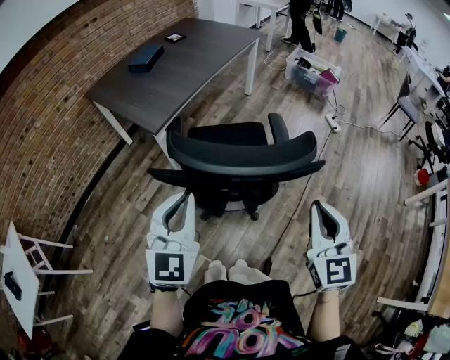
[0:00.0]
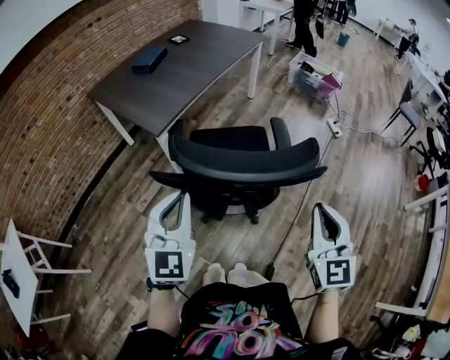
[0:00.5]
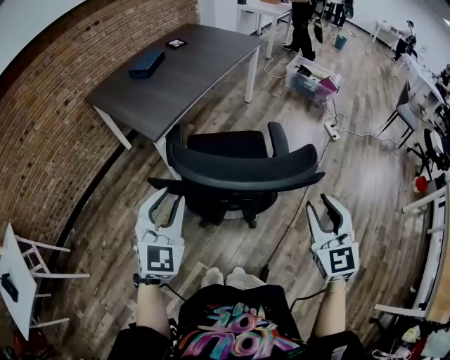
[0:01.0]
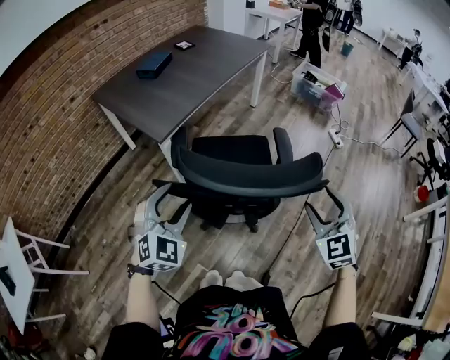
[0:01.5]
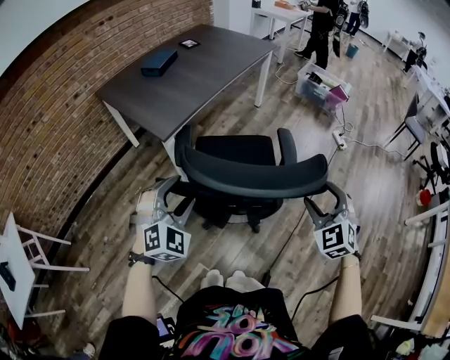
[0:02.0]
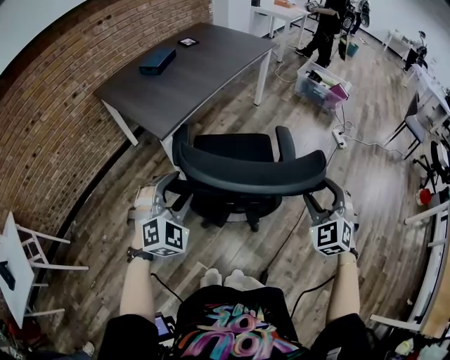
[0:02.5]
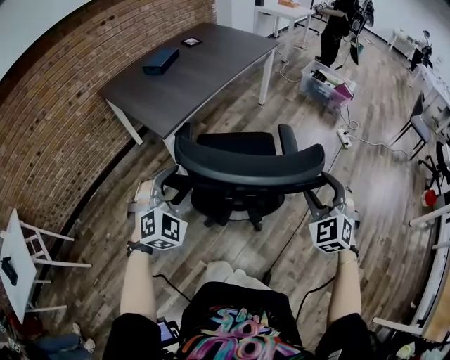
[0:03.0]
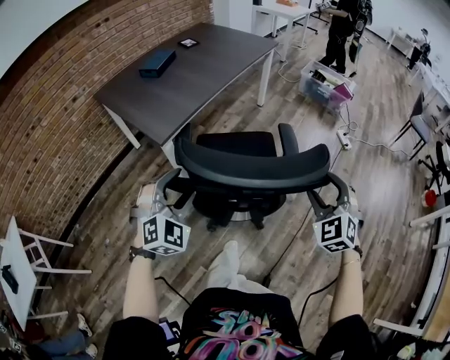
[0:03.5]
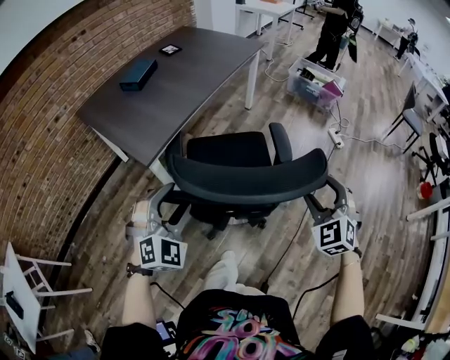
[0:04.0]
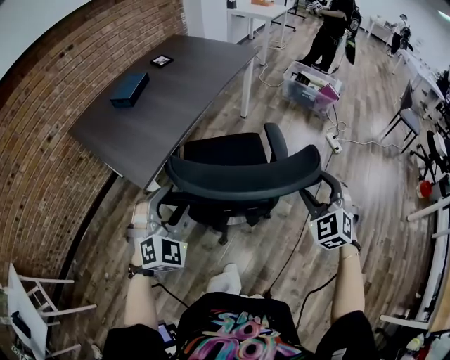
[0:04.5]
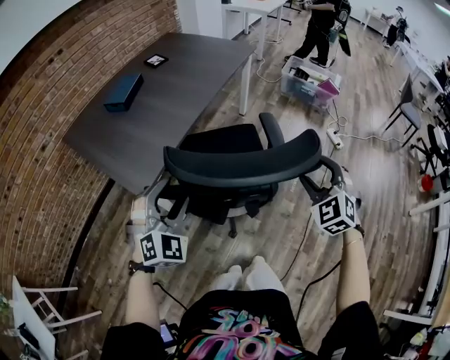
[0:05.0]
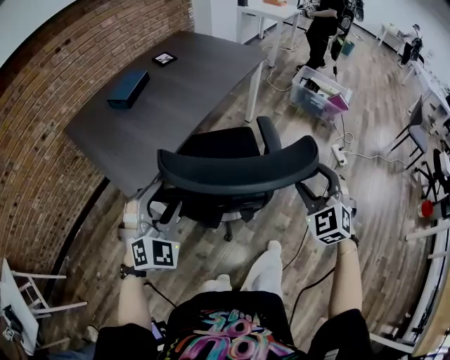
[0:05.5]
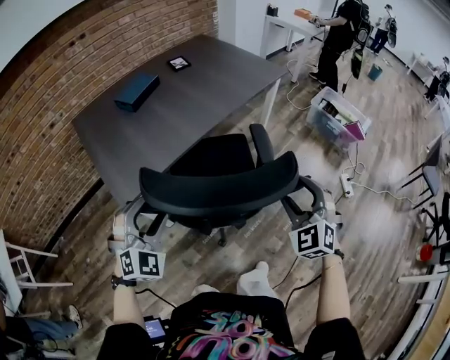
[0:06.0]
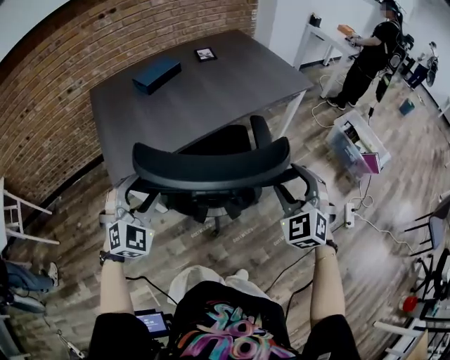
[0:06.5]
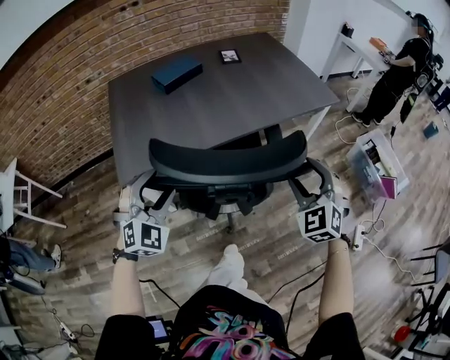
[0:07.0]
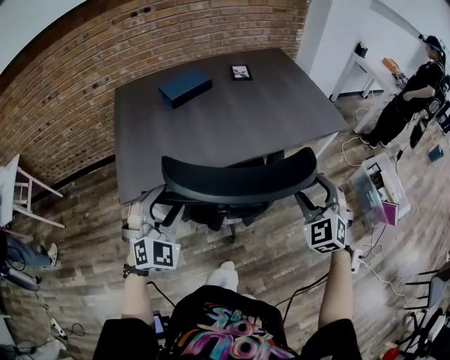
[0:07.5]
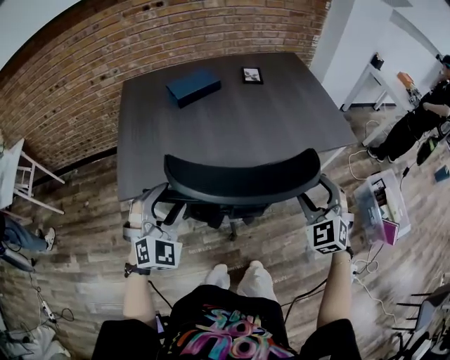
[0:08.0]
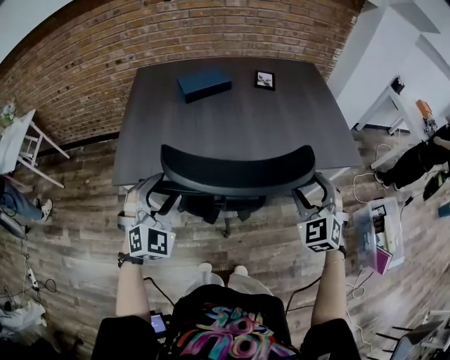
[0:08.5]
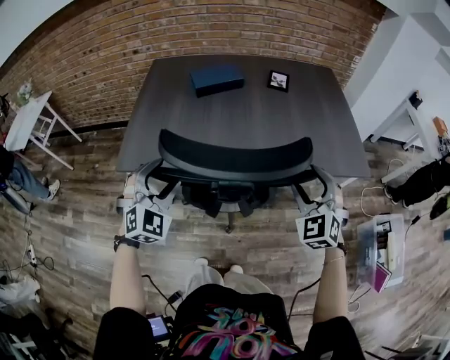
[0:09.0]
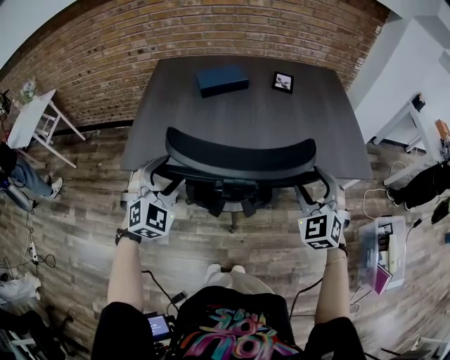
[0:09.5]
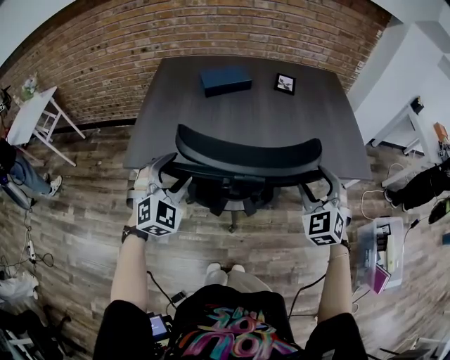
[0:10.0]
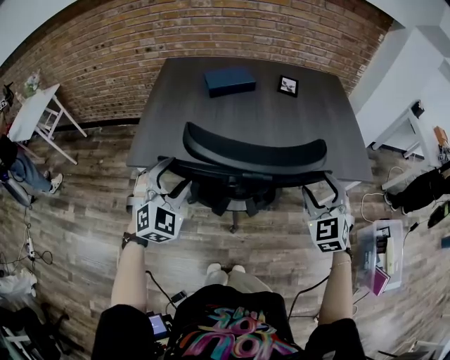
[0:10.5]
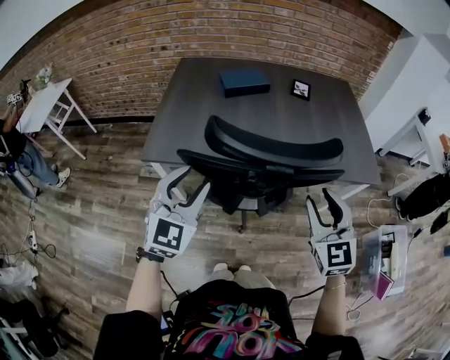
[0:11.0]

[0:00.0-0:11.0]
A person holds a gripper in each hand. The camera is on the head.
0:00.0 to 0:02.0: The right gripper heads forward and downward, covering roughly 15 cm, rotates some 40 degrees, and opens. Meanwhile the left gripper travels downward and forward by approximately 10 cm, rolls clockwise, seen from behind, by some 40 degrees, and opens up.
0:02.0 to 0:03.5: The right gripper travels forward by some 5 cm.
0:03.5 to 0:05.5: The two grippers go approximately 25 cm forward.
0:05.5 to 0:07.5: The left gripper shifts by roughly 20 cm, and rotates roughly 30 degrees. The right gripper moves approximately 35 cm, and turns by about 30 degrees.
0:07.5 to 0:09.0: The right gripper shifts some 15 cm forward; the left gripper shifts roughly 5 cm forward.
0:09.0 to 0:11.0: The left gripper shifts about 10 cm backward and upward, and swivels approximately 30 degrees. Meanwhile the right gripper travels backward, to the left and upward by approximately 10 cm, turns by about 30 degrees, and closes up.

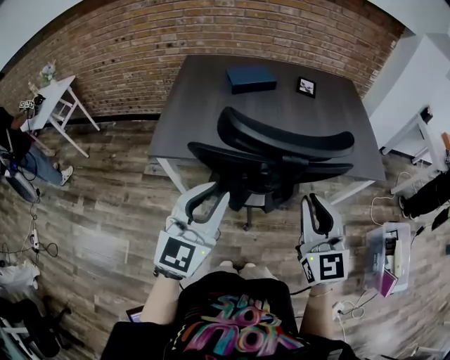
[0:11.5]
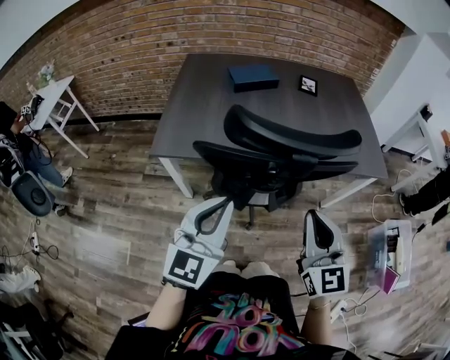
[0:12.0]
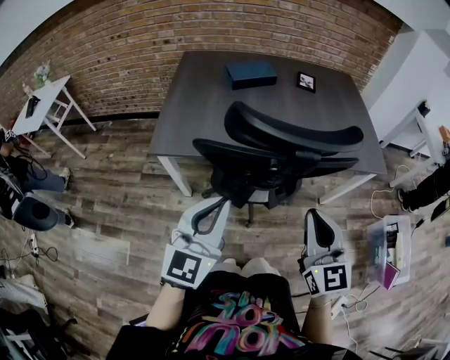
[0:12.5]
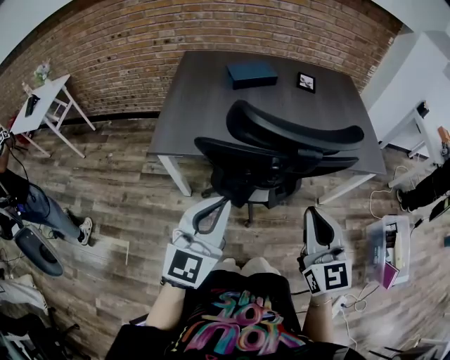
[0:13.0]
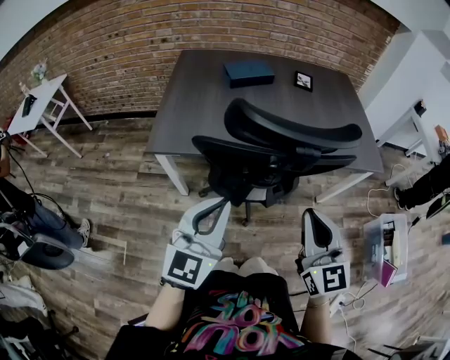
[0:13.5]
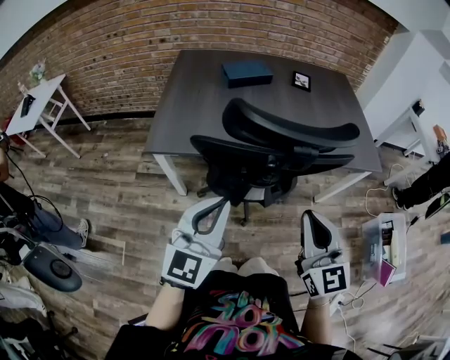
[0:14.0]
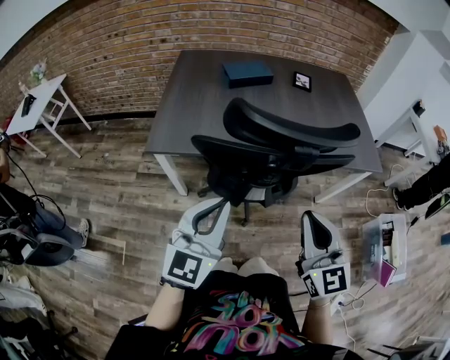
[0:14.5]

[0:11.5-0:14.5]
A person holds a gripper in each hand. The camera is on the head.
0:11.5 to 0:13.0: The grippers stay close to where they were, moving slightly.
0:13.0 to 0:14.5: The grippers move only a little.

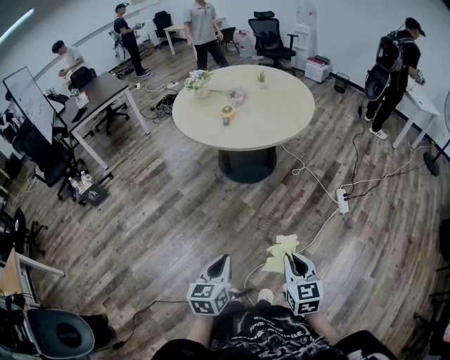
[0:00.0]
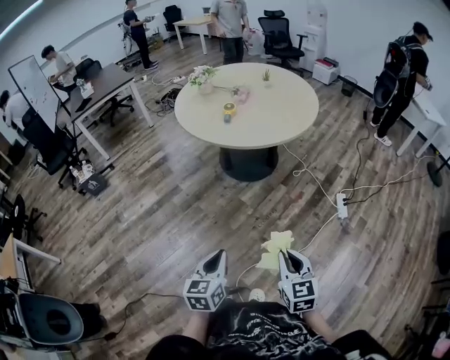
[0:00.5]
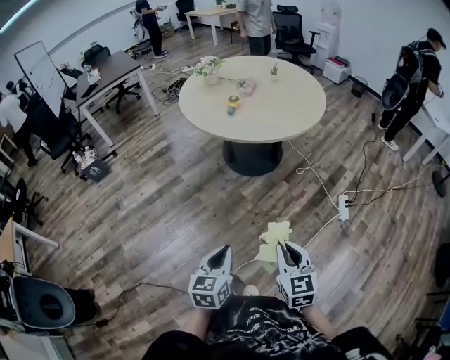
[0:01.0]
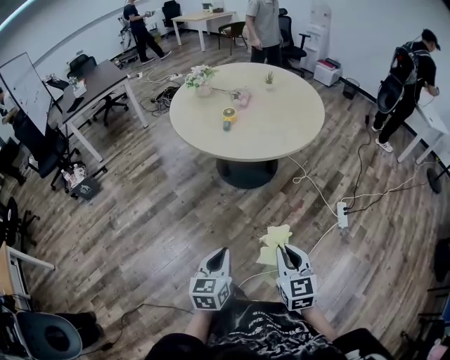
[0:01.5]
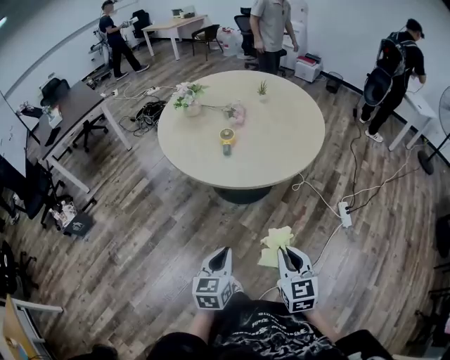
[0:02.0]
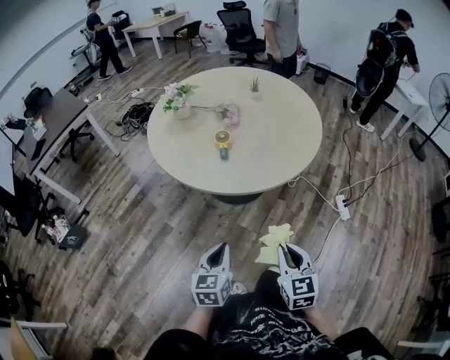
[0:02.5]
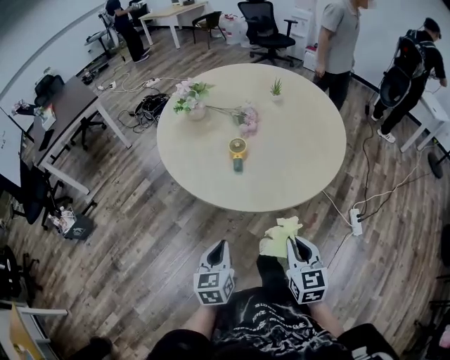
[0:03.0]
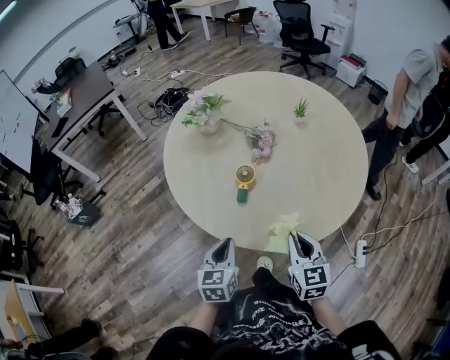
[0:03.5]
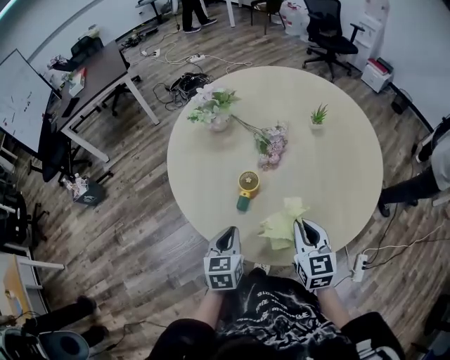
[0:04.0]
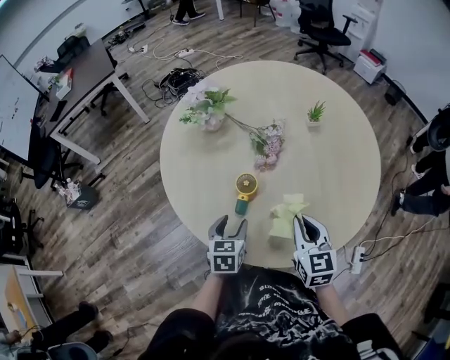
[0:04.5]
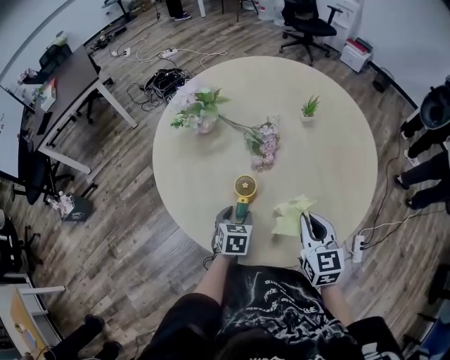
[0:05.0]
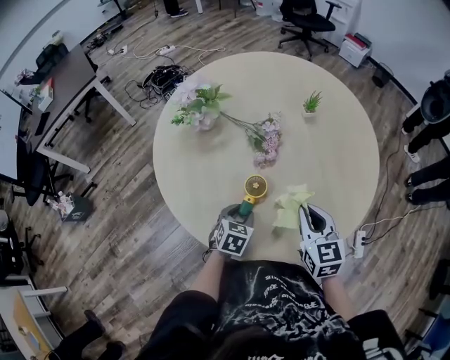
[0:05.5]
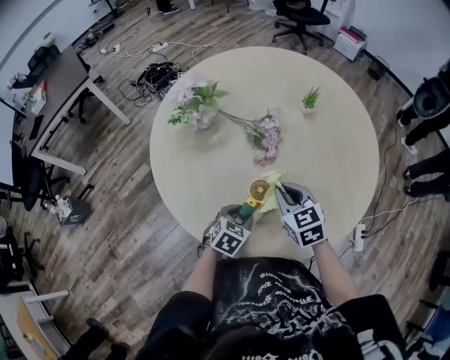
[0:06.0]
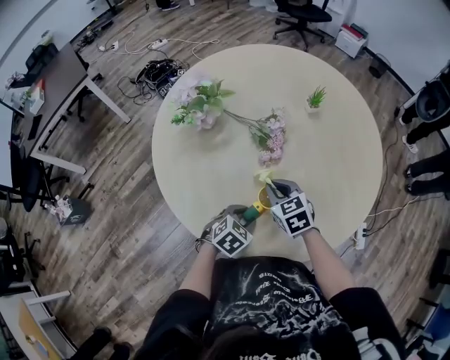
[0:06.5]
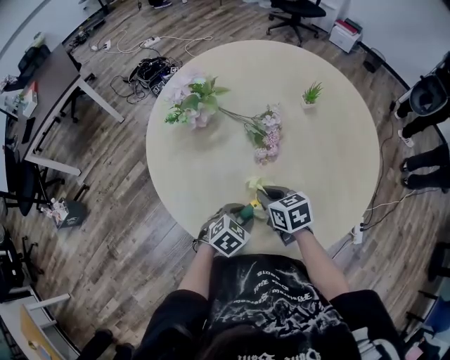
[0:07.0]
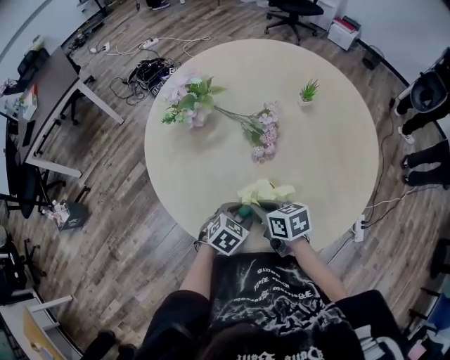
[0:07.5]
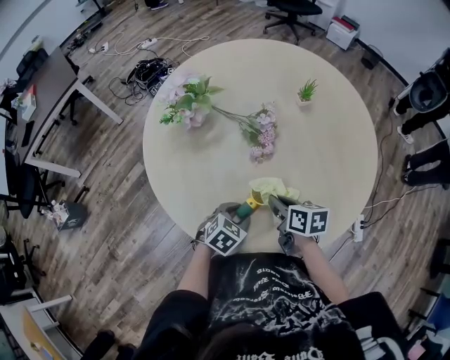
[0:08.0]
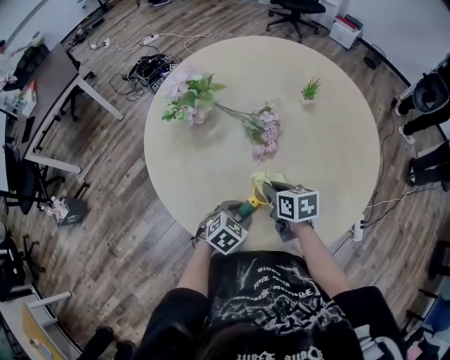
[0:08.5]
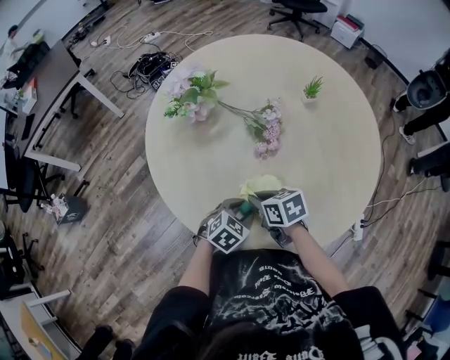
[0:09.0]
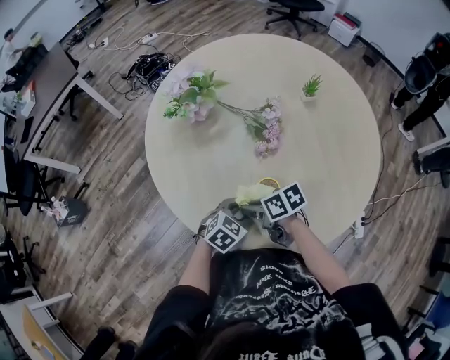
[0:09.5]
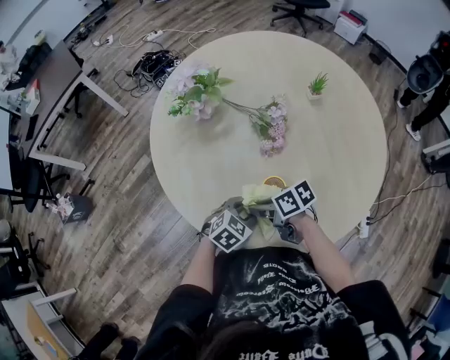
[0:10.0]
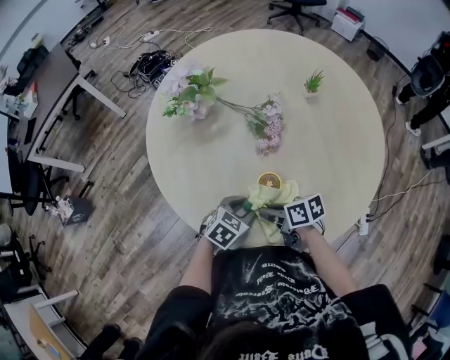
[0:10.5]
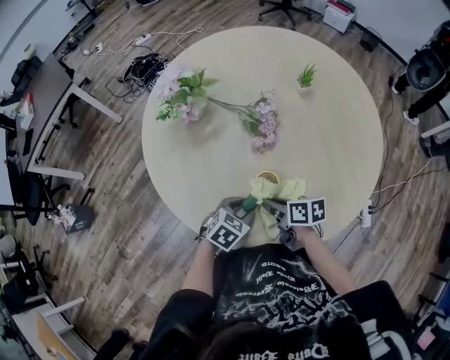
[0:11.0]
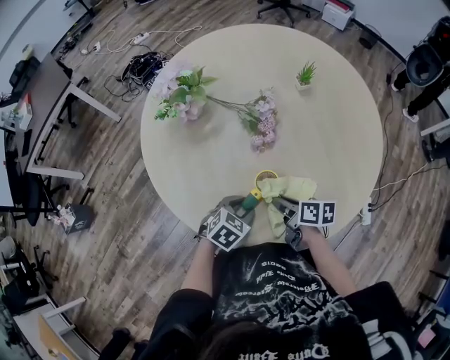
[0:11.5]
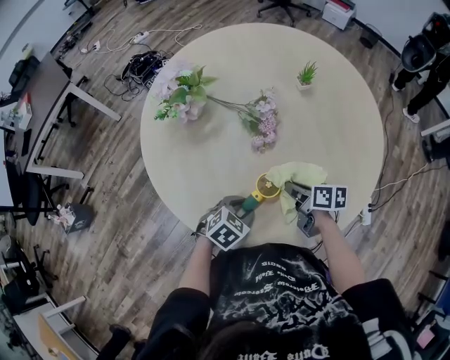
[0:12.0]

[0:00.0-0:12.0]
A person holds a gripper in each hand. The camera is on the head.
0:00.0 to 0:02.0: The grippers both shift forward by approximately 30 cm.
0:02.0 to 0:04.0: The pair of grippers is taken some 50 cm. The left gripper turns by roughly 20 degrees.
0:04.0 to 0:06.0: The left gripper is displaced downward and forward by roughly 15 cm, turns by about 50 degrees, and opens. Meanwhile the right gripper is displaced forward and to the left by about 15 cm.
0:06.0 to 0:08.0: The right gripper moves downward, some 5 cm, and rotates around the line of its fingers by approximately 40 degrees, clockwise from behind.
0:08.0 to 0:10.0: The right gripper changes place by roughly 10 cm, and rotates some 40 degrees.
0:10.0 to 0:12.0: The right gripper moves approximately 15 cm, and turns by some 40 degrees.
